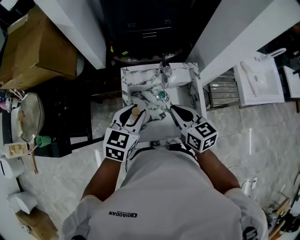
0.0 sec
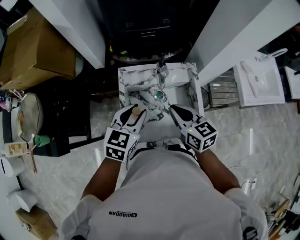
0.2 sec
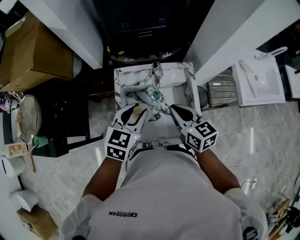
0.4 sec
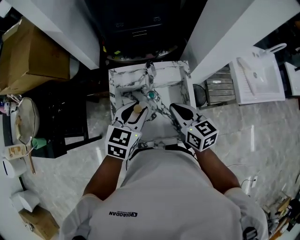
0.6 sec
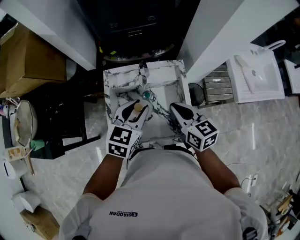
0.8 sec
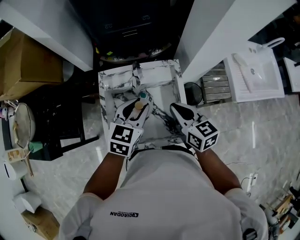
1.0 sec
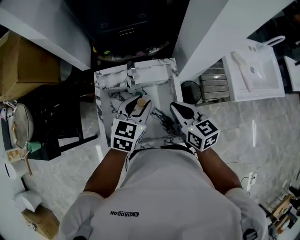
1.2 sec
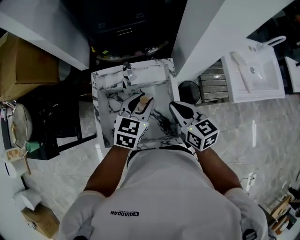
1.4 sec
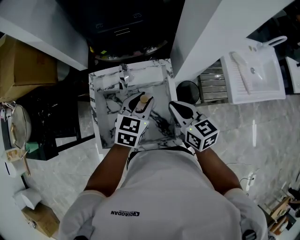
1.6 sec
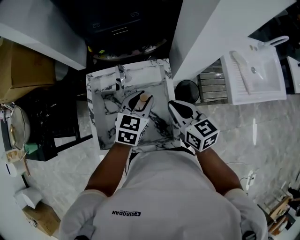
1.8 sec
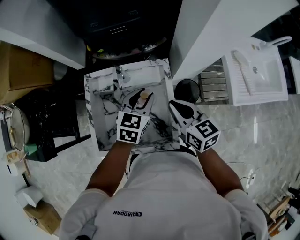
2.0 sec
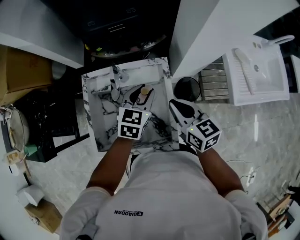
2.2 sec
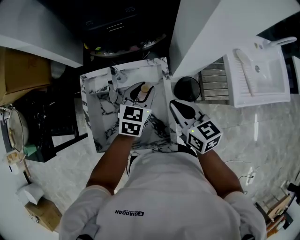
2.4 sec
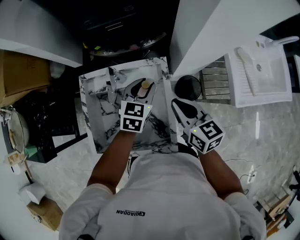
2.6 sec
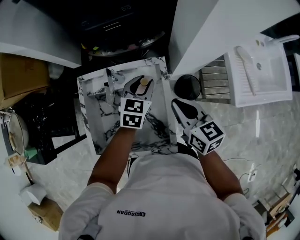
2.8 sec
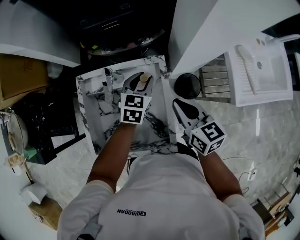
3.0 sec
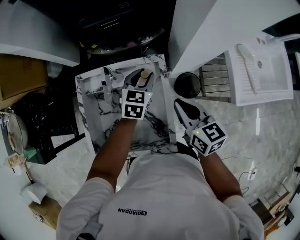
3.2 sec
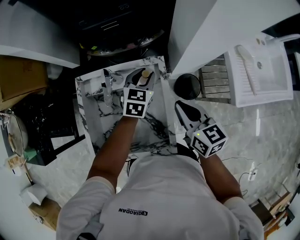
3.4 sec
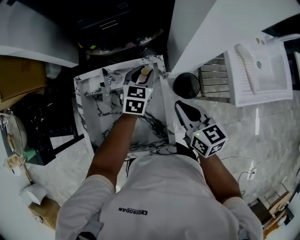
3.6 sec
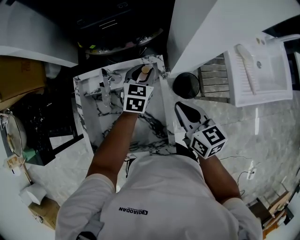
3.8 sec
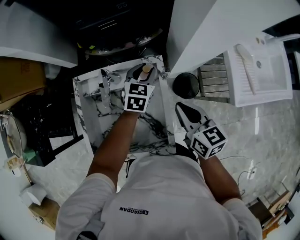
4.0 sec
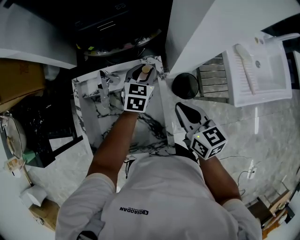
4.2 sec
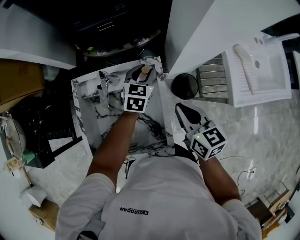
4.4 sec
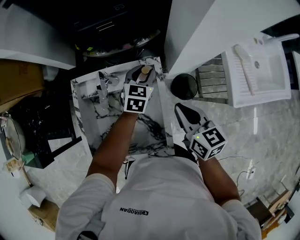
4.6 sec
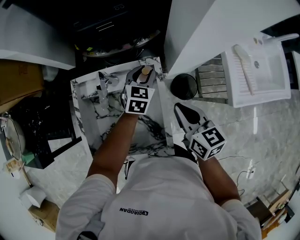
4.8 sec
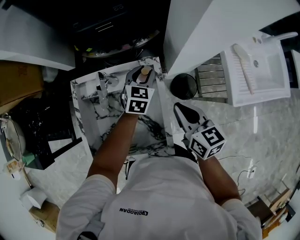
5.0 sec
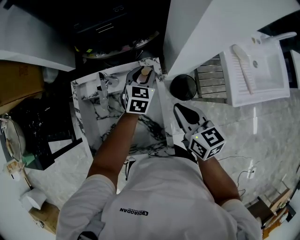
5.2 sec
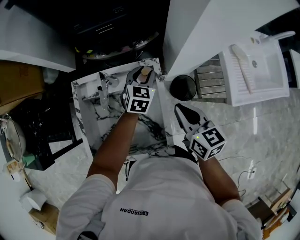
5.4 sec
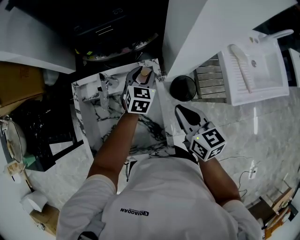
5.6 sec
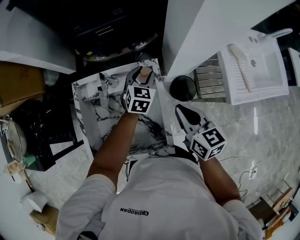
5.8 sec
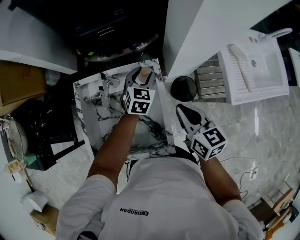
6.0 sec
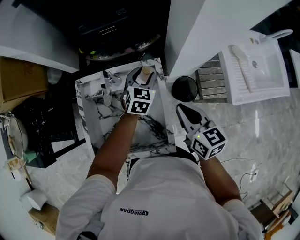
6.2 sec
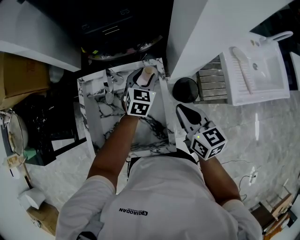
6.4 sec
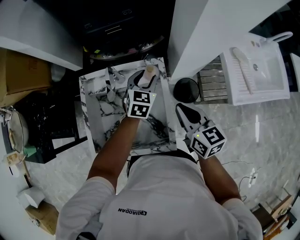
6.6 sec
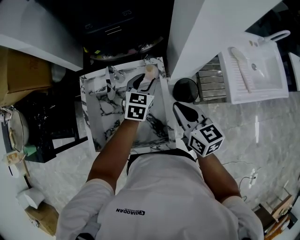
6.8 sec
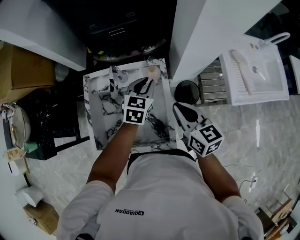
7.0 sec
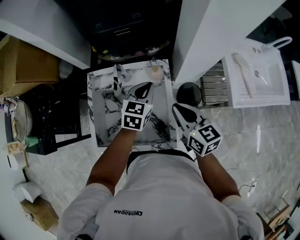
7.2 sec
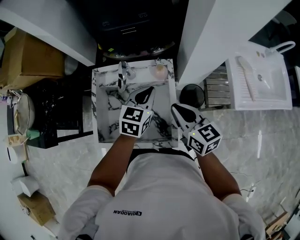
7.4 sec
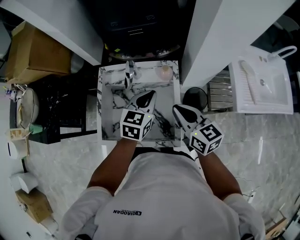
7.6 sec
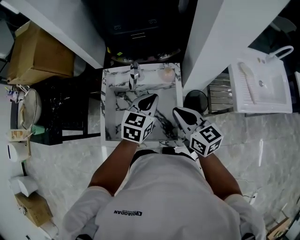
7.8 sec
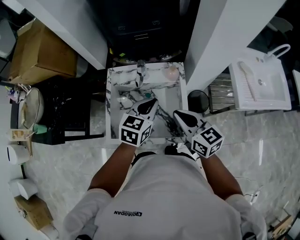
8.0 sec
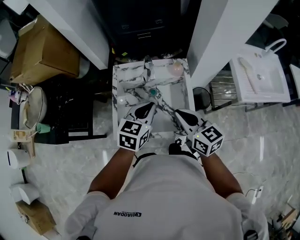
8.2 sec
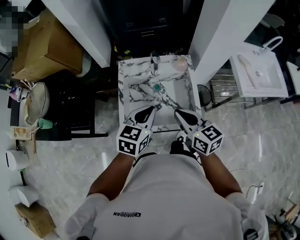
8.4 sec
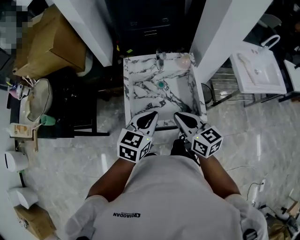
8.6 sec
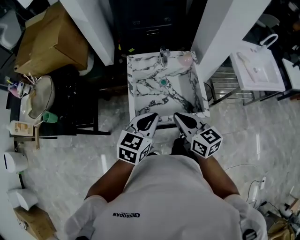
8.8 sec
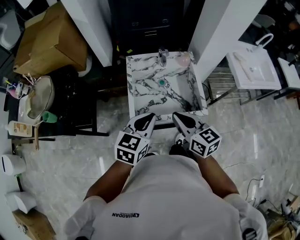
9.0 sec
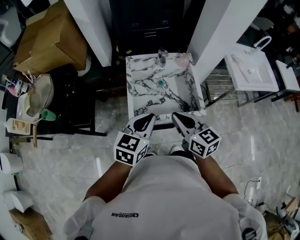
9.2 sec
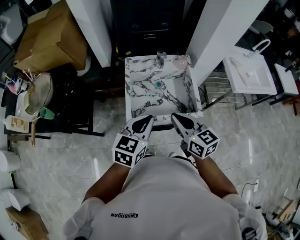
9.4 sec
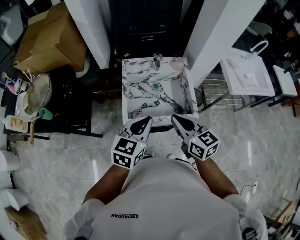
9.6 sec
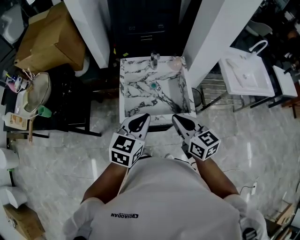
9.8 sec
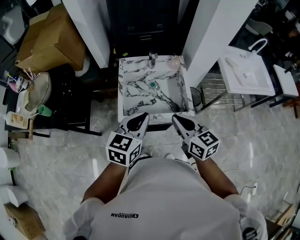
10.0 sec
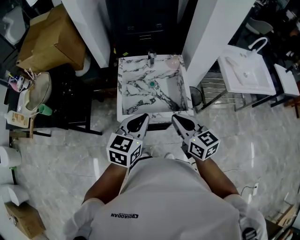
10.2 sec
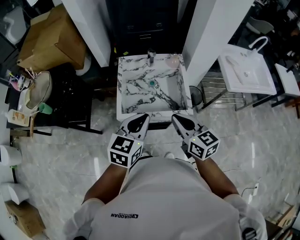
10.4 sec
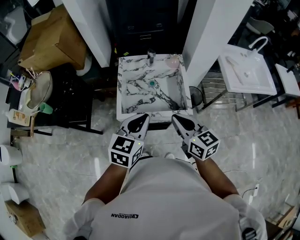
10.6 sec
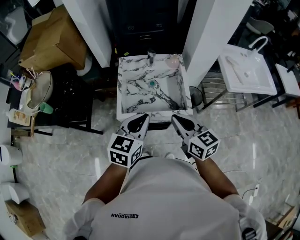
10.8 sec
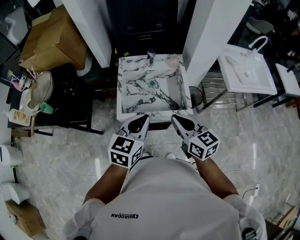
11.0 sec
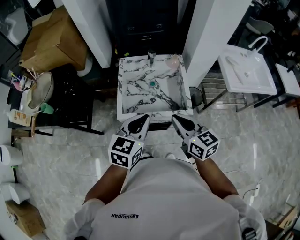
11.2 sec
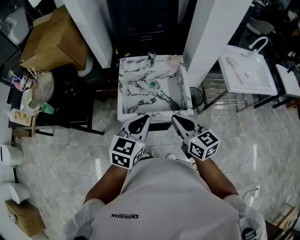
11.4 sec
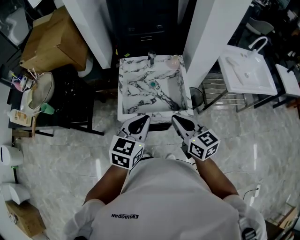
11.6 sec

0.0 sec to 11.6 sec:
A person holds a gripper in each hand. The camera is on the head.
0.0 sec to 1.4 sec: The two grippers go approximately 20 cm to the right.
1.4 sec to 2.8 sec: The right gripper heads to the right and forward, covering about 10 cm, while the left gripper is displaced forward, downward and to the right by some 15 cm.
2.8 sec to 4.4 sec: The left gripper moves forward, approximately 5 cm.
4.4 sec to 5.8 sec: There are only small adjustments of the grippers.
5.8 sec to 7.2 sec: The right gripper ends up some 5 cm from where it was. The left gripper heads backward and upward, covering about 15 cm, and closes its fingers.
7.2 sec to 8.8 sec: The left gripper moves backward and to the left, about 40 cm; the right gripper heads to the left and backward, covering approximately 30 cm.
8.8 sec to 10.2 sec: The right gripper heads to the right and backward, covering about 10 cm, while the left gripper heads backward, covering approximately 5 cm.
10.2 sec to 11.6 sec: The grippers stay close to where they were, moving slightly.

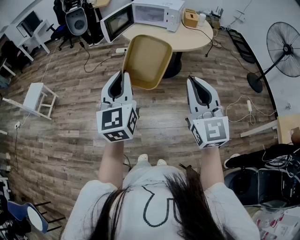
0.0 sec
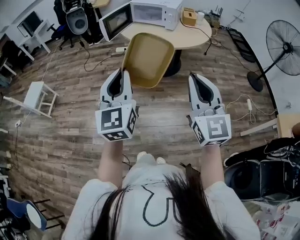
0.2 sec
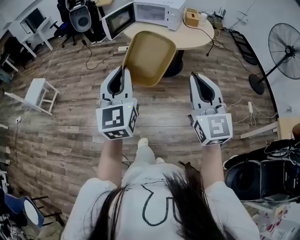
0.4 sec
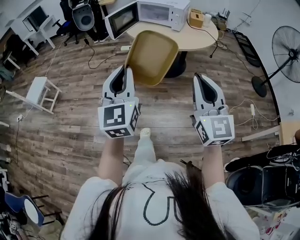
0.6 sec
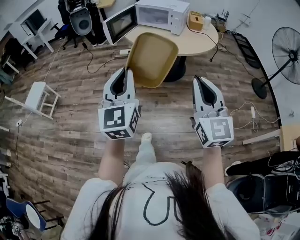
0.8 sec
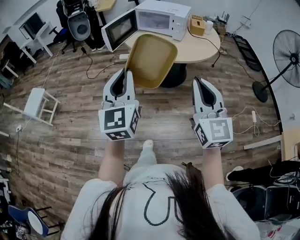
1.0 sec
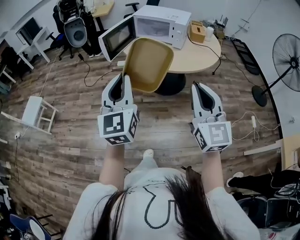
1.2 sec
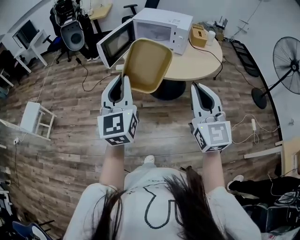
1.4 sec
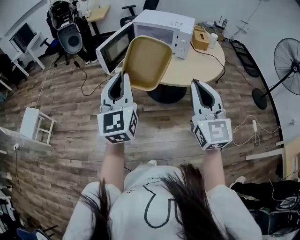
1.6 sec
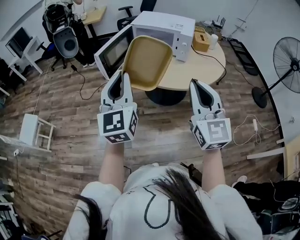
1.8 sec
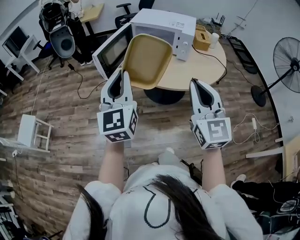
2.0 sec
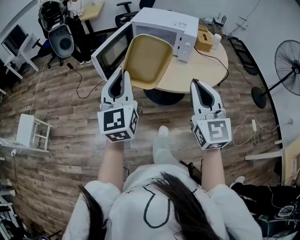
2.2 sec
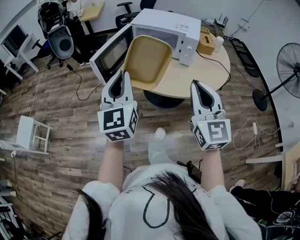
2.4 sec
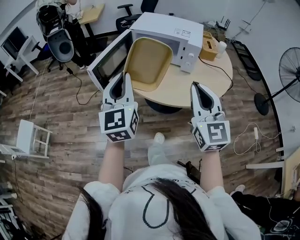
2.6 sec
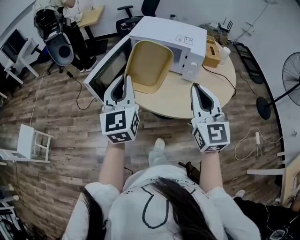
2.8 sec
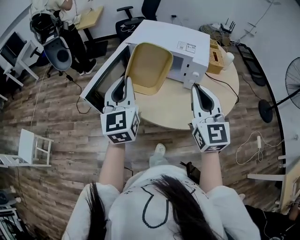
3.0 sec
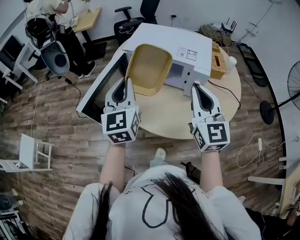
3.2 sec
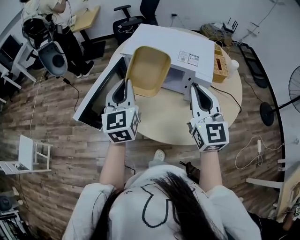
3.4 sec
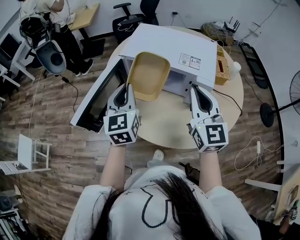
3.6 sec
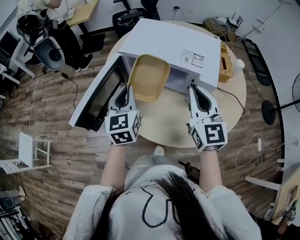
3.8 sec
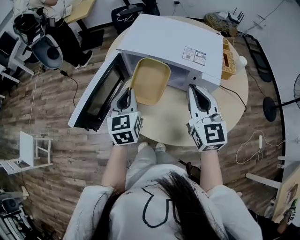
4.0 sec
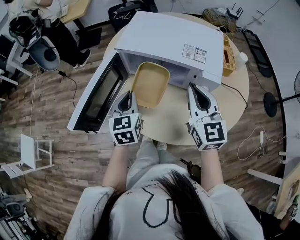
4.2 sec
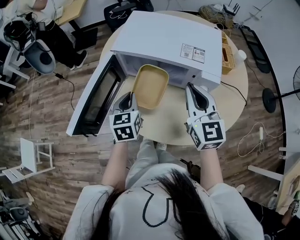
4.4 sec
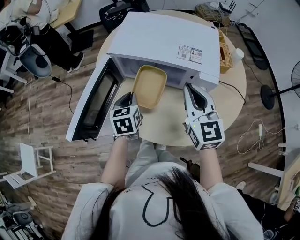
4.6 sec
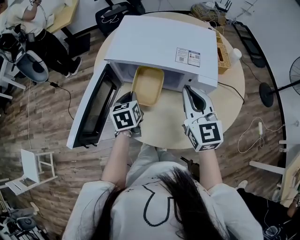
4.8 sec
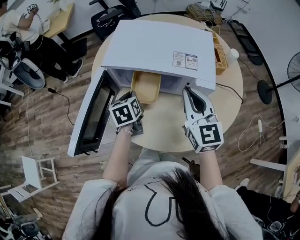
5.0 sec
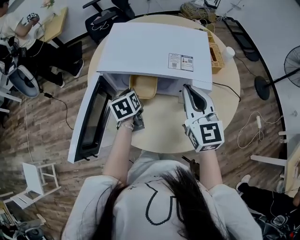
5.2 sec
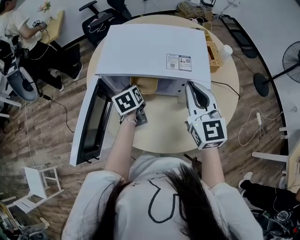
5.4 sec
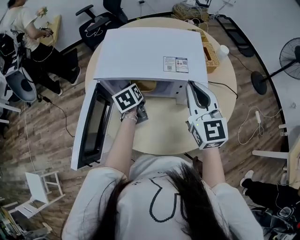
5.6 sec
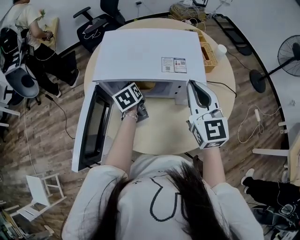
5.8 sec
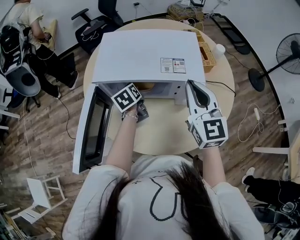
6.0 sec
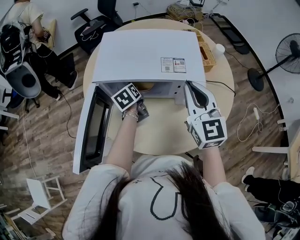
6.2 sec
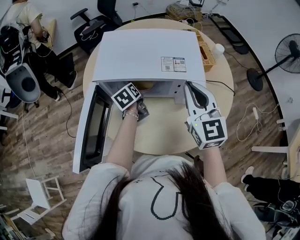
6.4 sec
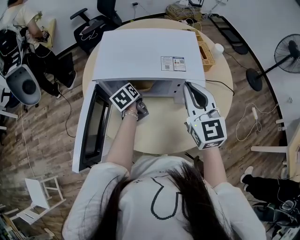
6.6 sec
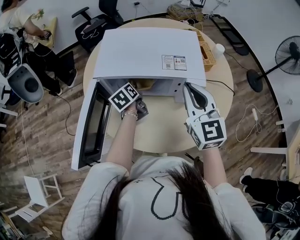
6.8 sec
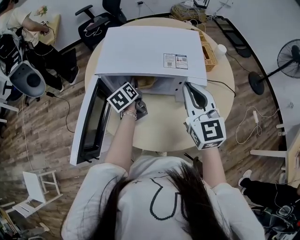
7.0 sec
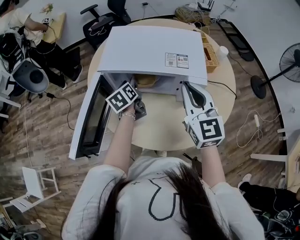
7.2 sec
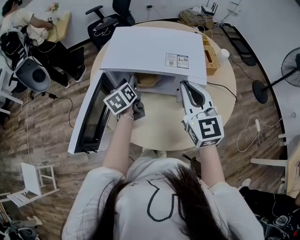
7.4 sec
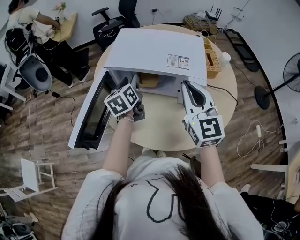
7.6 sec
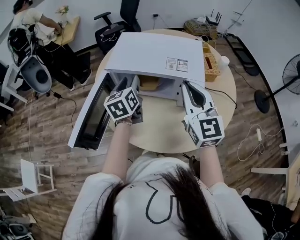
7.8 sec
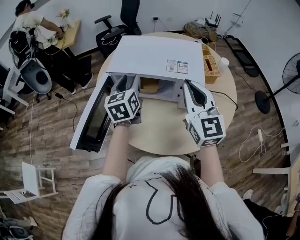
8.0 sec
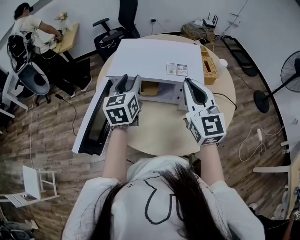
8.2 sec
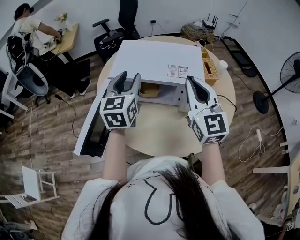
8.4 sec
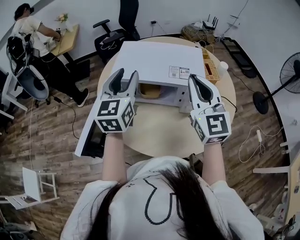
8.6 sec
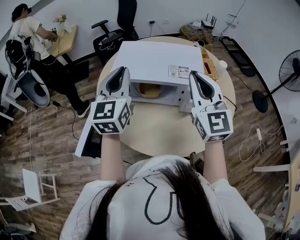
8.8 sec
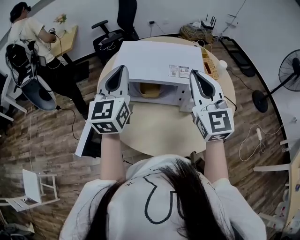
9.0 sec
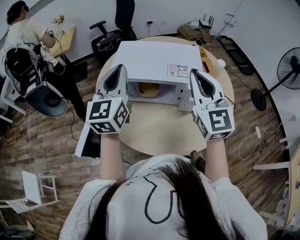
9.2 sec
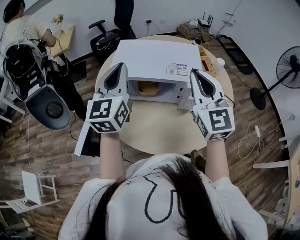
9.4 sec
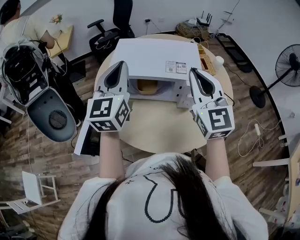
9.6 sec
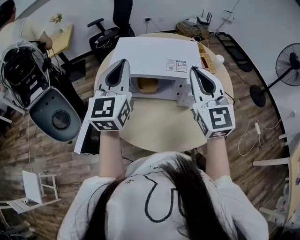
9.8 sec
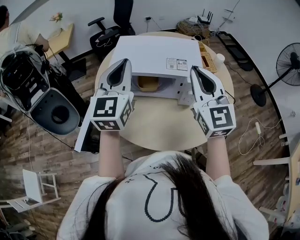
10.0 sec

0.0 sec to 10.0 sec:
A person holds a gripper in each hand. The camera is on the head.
0.0 sec to 1.4 sec: Both grippers travel together forward, roughly 25 cm.
1.4 sec to 2.8 sec: Both grippers travel together forward, roughly 30 cm.
2.8 sec to 4.2 sec: The left gripper goes roughly 25 cm forward and downward, and rotates approximately 30 degrees. The right gripper goes about 20 cm forward.
4.2 sec to 5.8 sec: The right gripper travels to the right by approximately 5 cm, while the left gripper is displaced forward and downward by about 20 cm, and rotates approximately 30 degrees.
5.8 sec to 7.2 sec: The left gripper opens its fingers.
7.2 sec to 8.6 sec: The right gripper shifts roughly 10 cm upward; the left gripper shifts some 25 cm upward, and swivels about 50 degrees.
8.6 sec to 10.0 sec: The left gripper ends up roughly 5 cm from where it was, and closes its fingers.

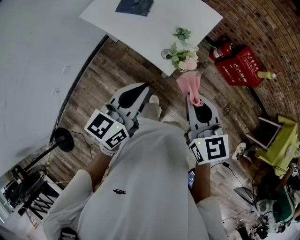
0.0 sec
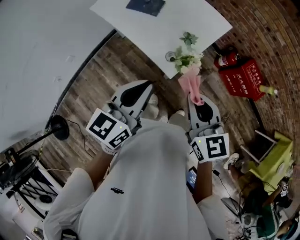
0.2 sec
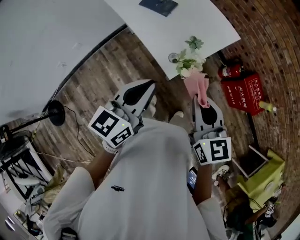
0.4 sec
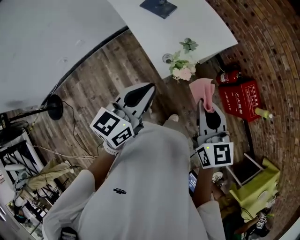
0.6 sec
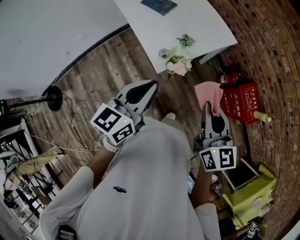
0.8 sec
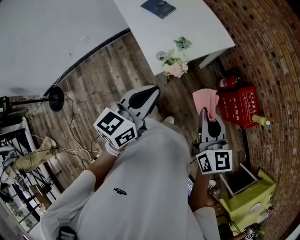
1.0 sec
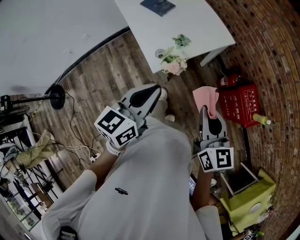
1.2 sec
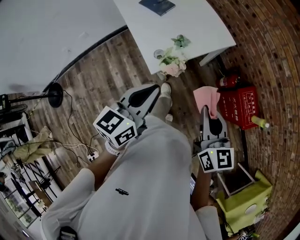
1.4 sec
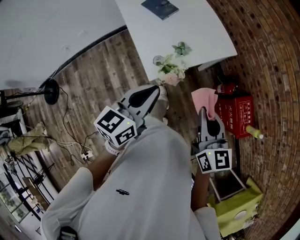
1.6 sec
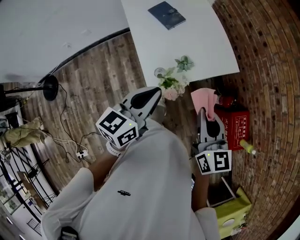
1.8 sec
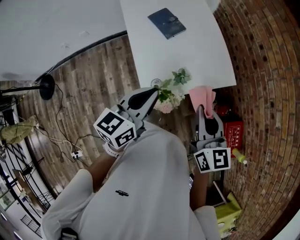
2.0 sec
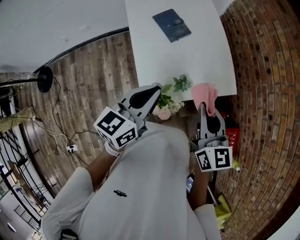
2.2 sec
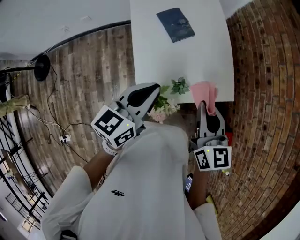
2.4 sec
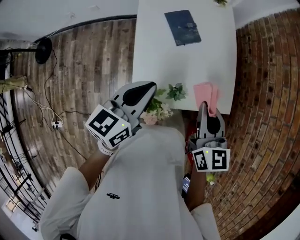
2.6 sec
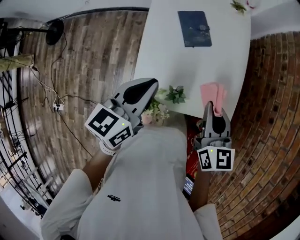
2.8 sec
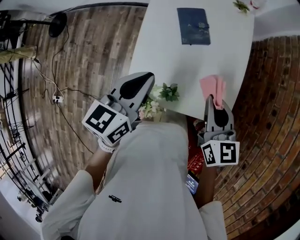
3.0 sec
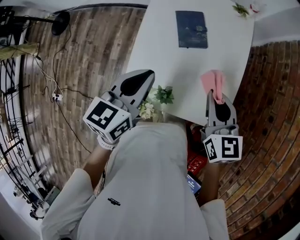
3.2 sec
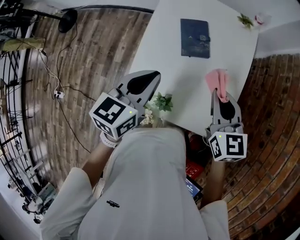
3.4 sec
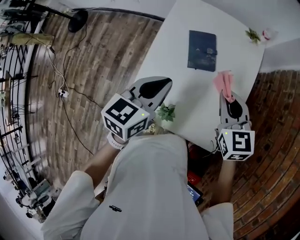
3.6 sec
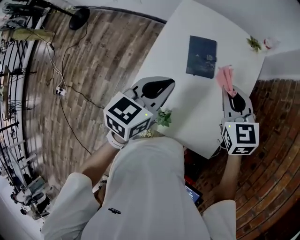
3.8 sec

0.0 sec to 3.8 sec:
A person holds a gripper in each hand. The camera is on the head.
0.0 sec to 1.2 sec: The grippers both shift to the right by approximately 20 cm. The left gripper changes its angle by approximately 20 degrees.
1.2 sec to 2.6 sec: Both grippers travel together forward, roughly 30 cm. The left gripper turns by about 30 degrees, while the right gripper rotates approximately 20 degrees.
2.6 sec to 3.8 sec: The left gripper moves approximately 15 cm, and changes its angle by some 20 degrees. Meanwhile the right gripper changes place by some 25 cm, and swivels roughly 50 degrees.
